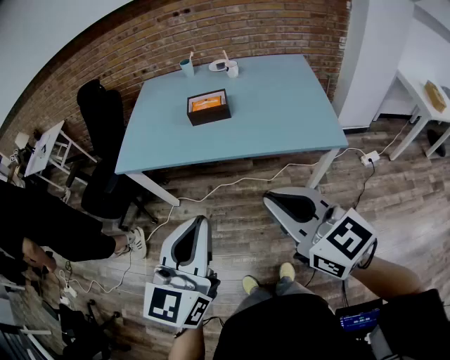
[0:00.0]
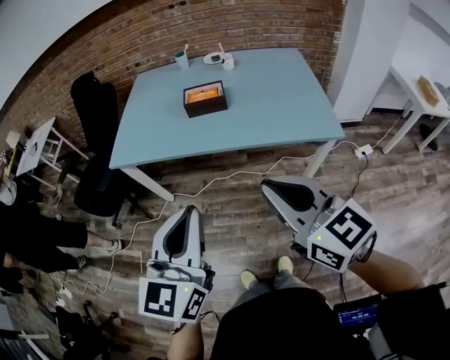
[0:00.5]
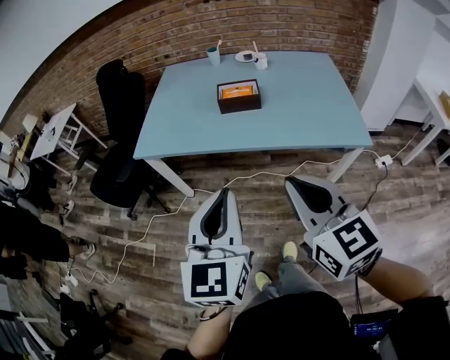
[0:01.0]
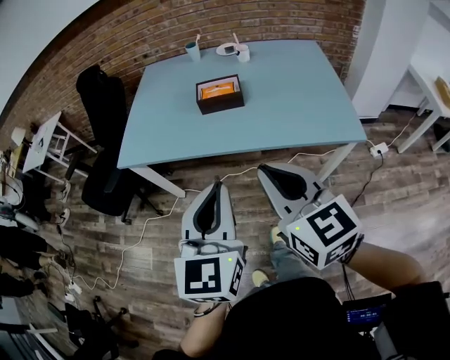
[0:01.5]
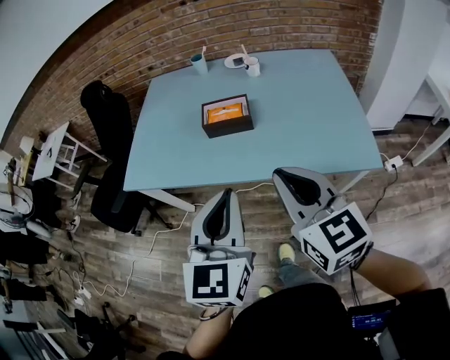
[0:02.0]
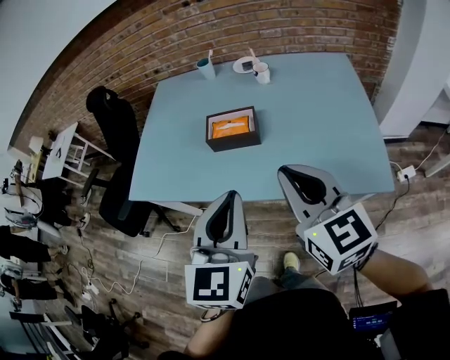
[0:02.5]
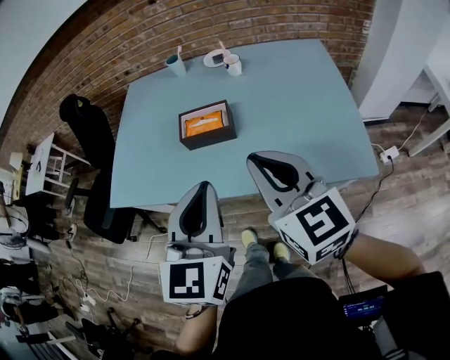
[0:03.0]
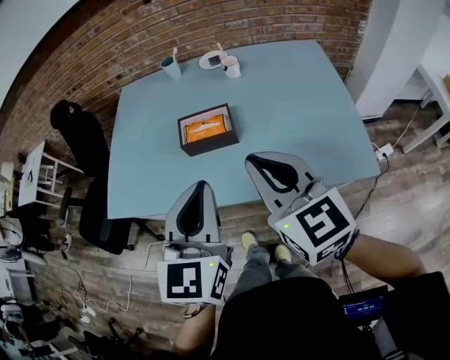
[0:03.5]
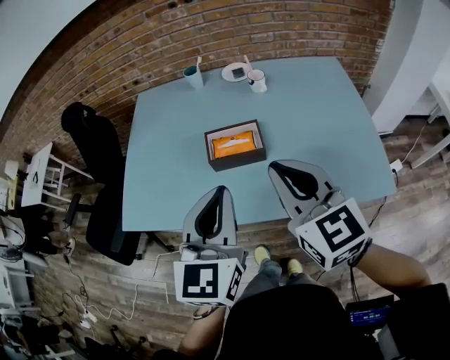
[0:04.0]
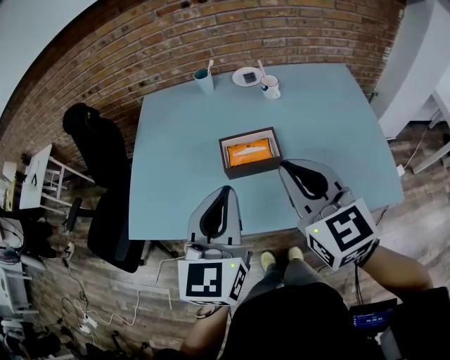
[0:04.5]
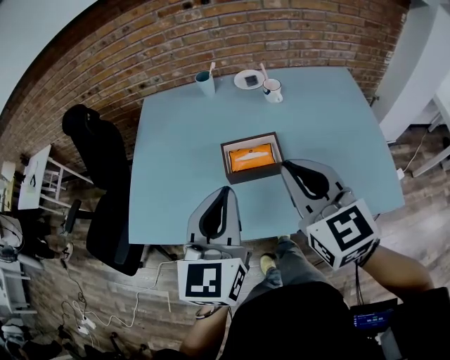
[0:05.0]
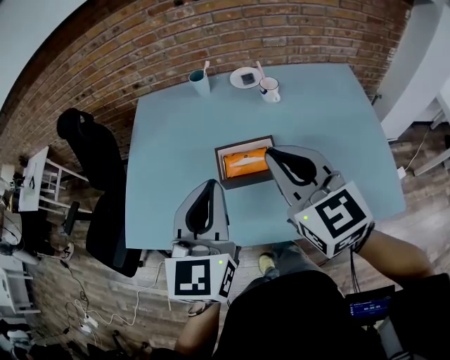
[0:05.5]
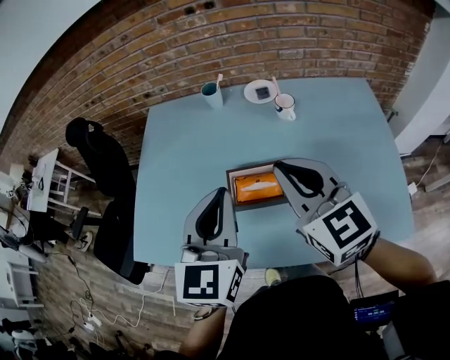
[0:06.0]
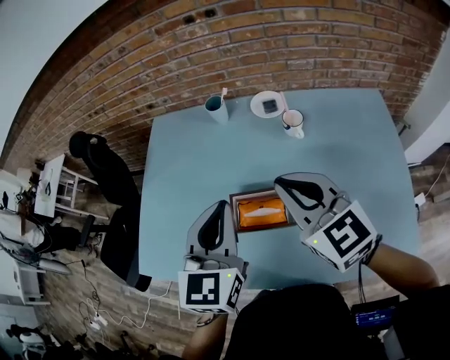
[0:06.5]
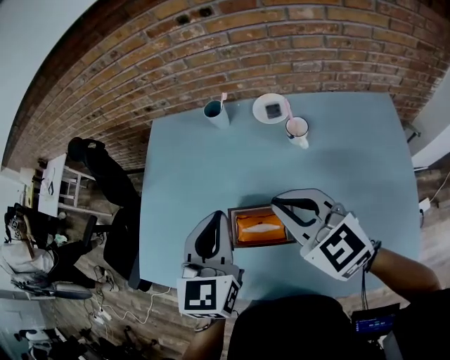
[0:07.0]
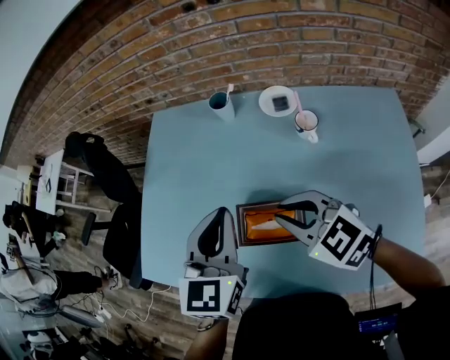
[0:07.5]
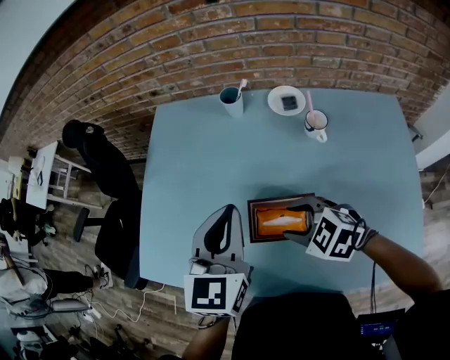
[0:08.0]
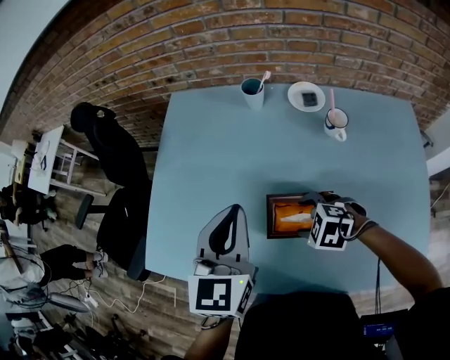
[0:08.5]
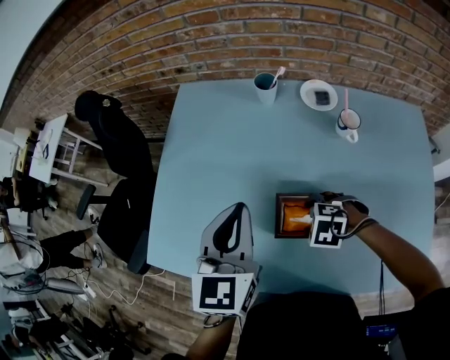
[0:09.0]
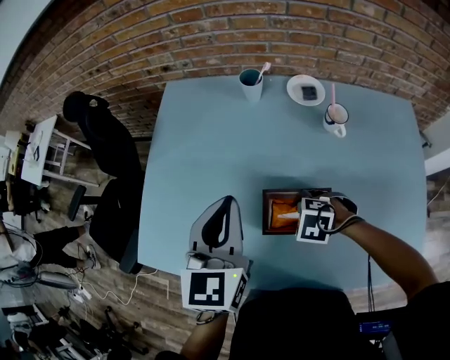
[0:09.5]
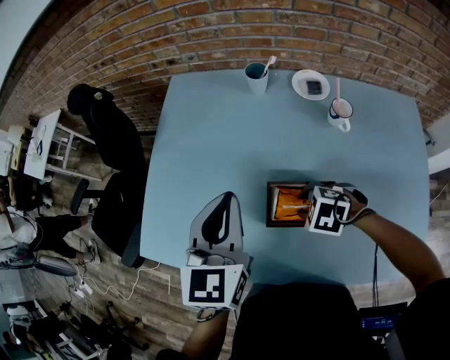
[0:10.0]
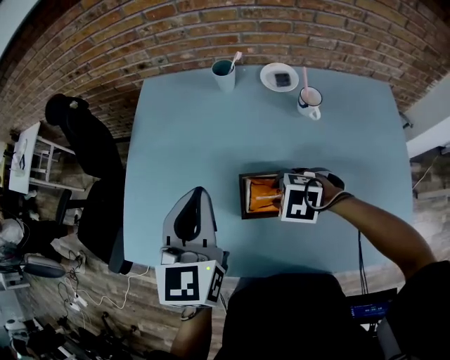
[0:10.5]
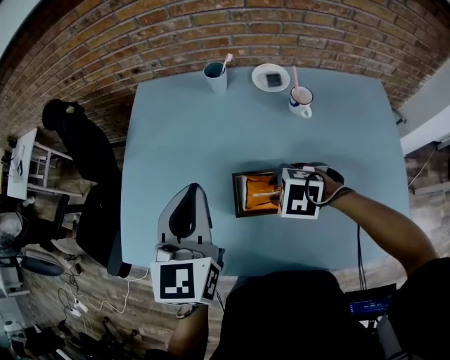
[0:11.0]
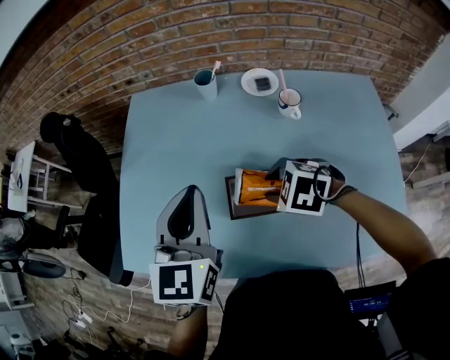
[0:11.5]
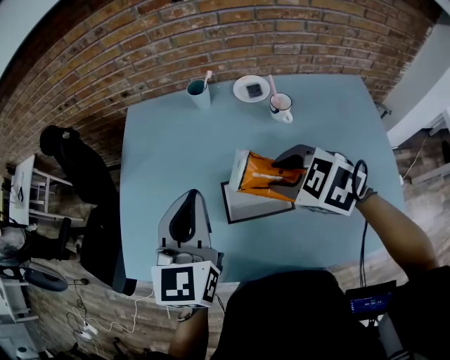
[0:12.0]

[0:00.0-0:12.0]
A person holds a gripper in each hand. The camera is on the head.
0:00.0 to 0:02.0: The two grippers go about 20 cm forward.
0:02.0 to 0:04.0: The two grippers go about 20 cm forward.
0:04.0 to 0:06.0: Both grippers travel together forward, some 15 cm.
0:06.0 to 0:08.0: The left gripper shifts roughly 15 cm forward and downward, while the right gripper heads downward, covering about 20 cm, tips its fingers downward by roughly 40 degrees, and opens its fingers.
0:08.0 to 0:10.0: The left gripper ends up roughly 5 cm from where it was. Meanwhile the right gripper is displaced downward by about 10 cm, and turns by some 20 degrees.
0:10.0 to 0:12.0: The left gripper moves approximately 5 cm, while the right gripper goes roughly 15 cm upward, and rotates some 30 degrees.

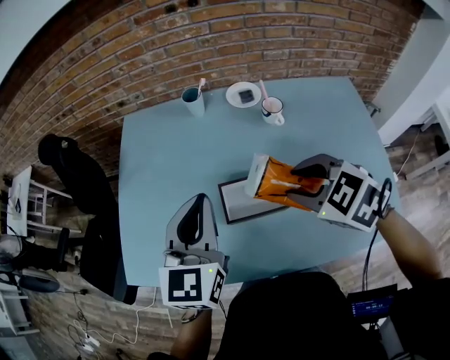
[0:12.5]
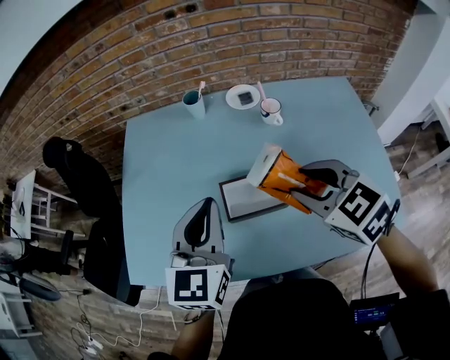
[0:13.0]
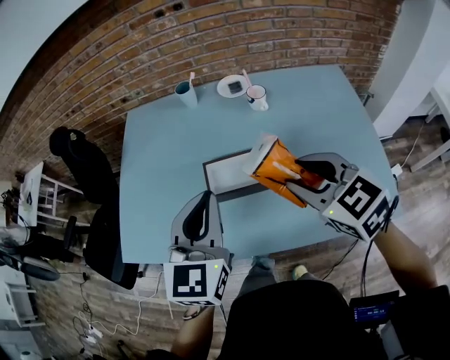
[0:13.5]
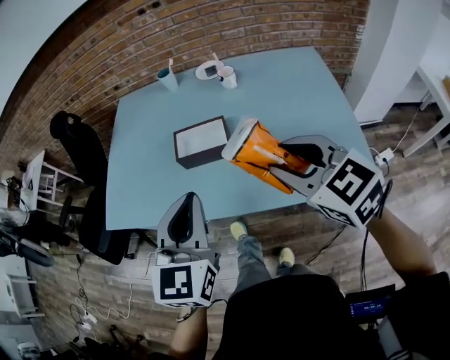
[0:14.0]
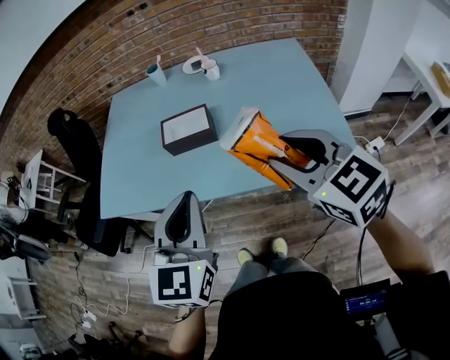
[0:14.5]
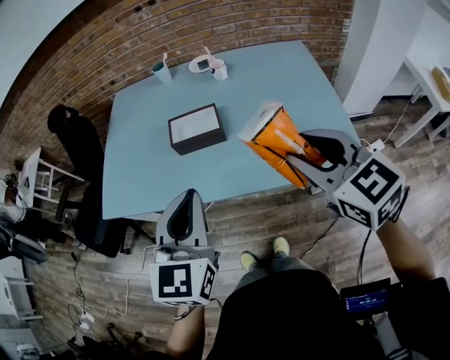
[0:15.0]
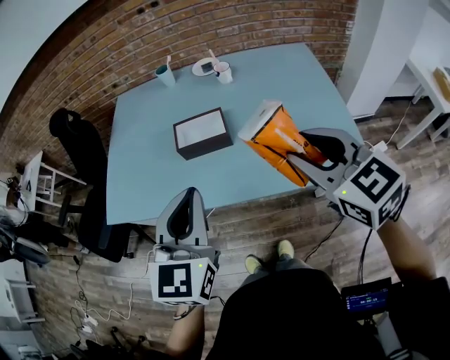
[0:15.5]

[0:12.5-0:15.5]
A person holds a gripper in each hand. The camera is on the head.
0:12.5 to 0:14.0: The grippers both shift backward by roughly 25 cm. The right gripper changes its angle by about 30 degrees.
0:14.0 to 0:15.5: The right gripper is displaced backward by approximately 5 cm.

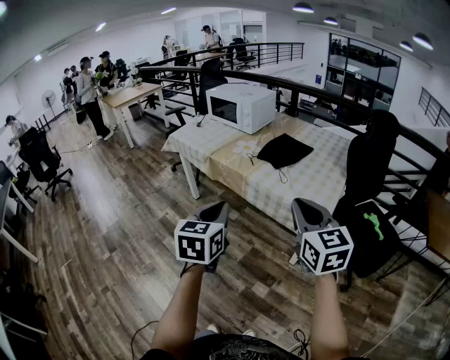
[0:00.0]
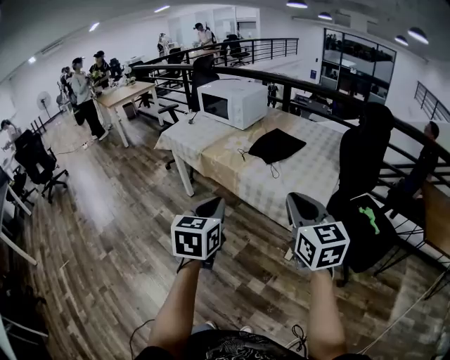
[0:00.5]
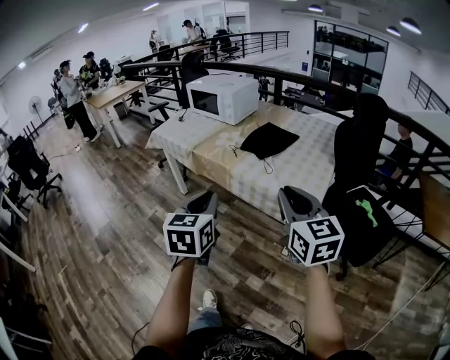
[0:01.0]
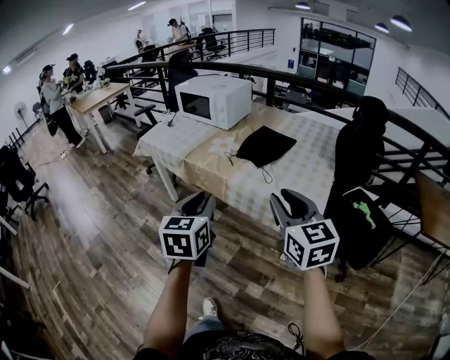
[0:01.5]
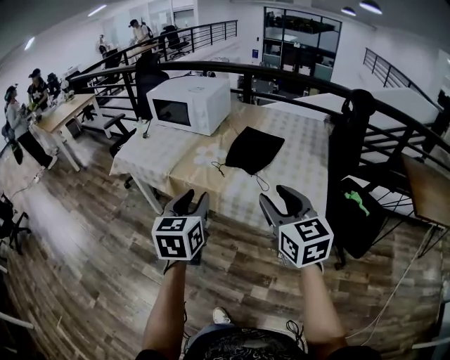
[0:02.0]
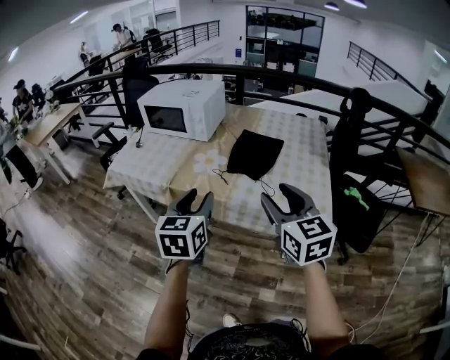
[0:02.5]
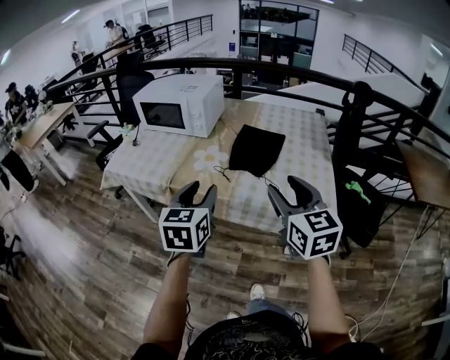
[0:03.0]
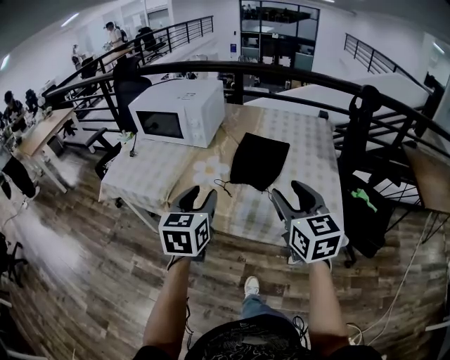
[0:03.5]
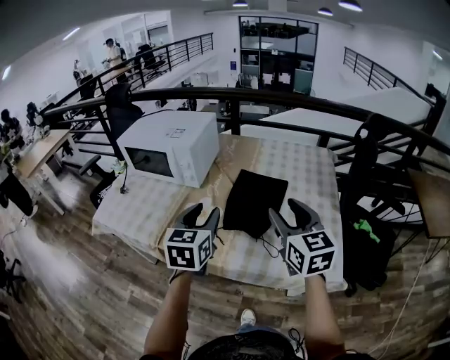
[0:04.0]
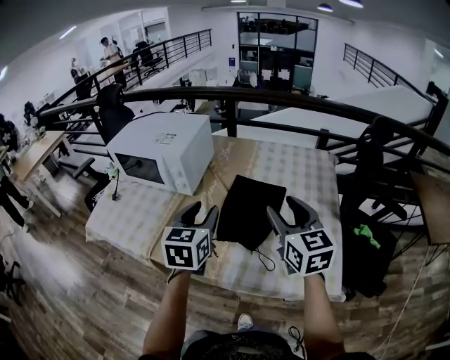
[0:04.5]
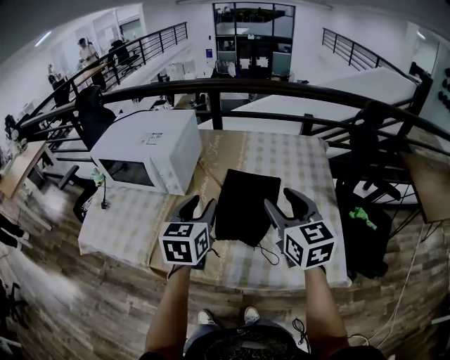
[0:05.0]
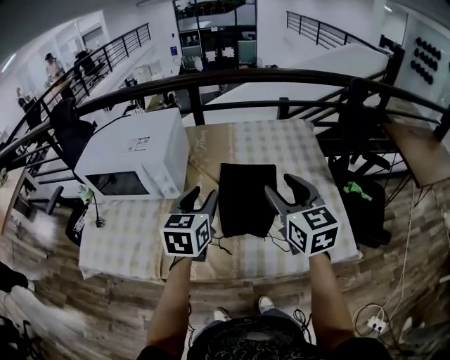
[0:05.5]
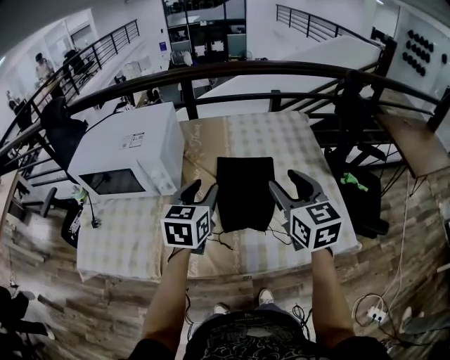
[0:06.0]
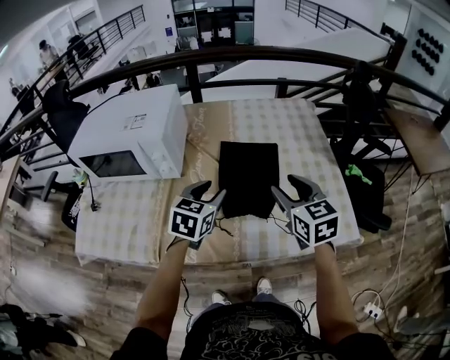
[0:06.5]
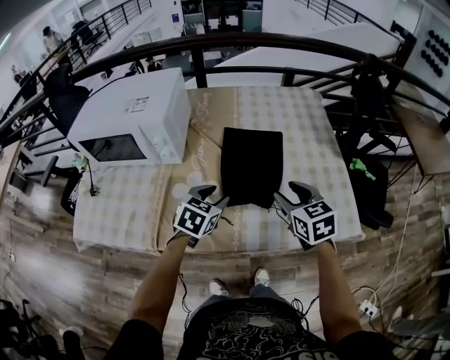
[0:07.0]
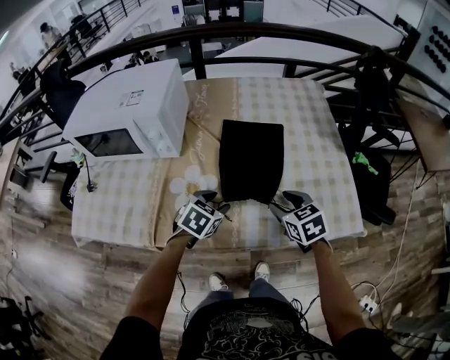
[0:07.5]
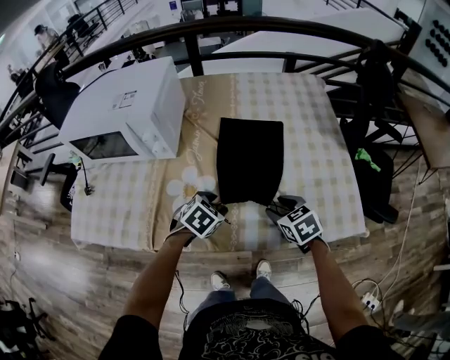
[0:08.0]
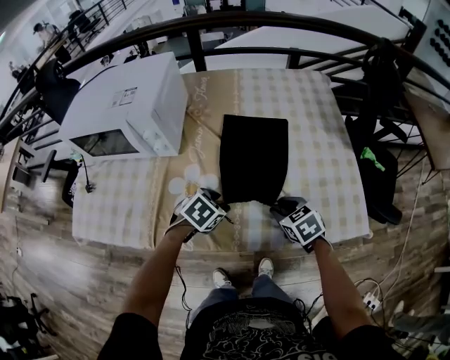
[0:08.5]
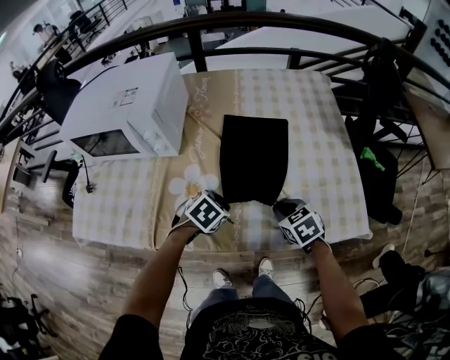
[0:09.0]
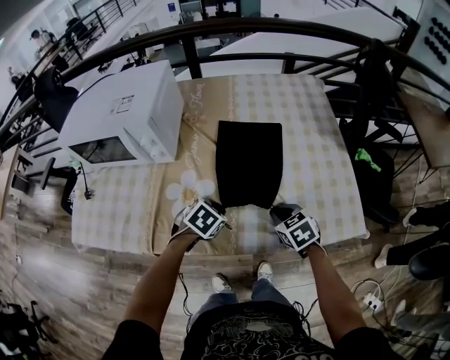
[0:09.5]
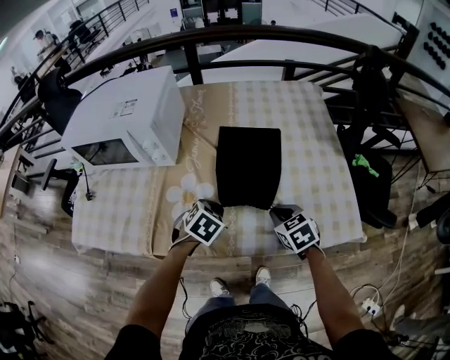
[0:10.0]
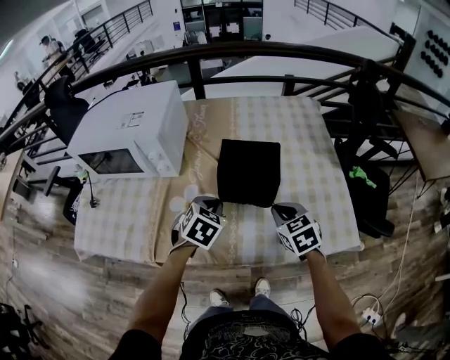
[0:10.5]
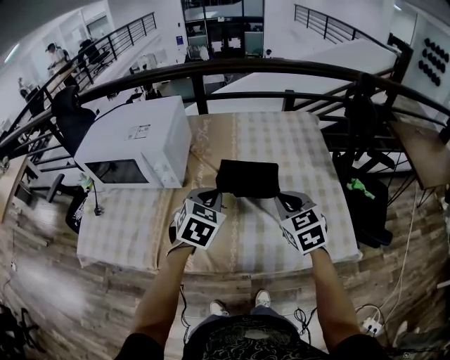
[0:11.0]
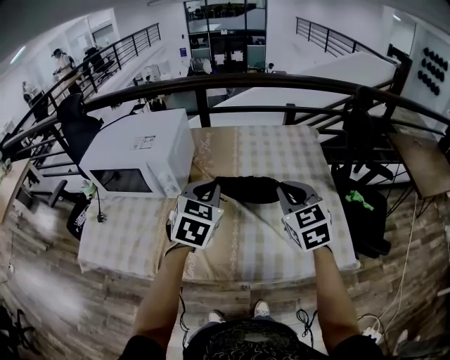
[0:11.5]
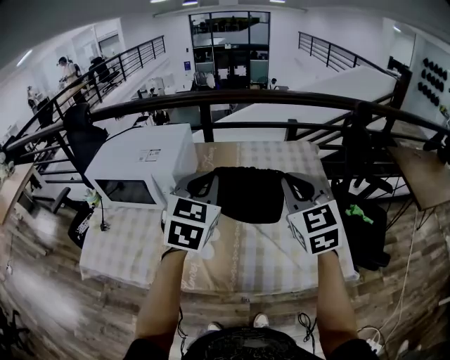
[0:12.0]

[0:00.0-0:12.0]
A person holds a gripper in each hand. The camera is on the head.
0:00.0 to 0:02.0: The two grippers go approximately 20 cm forward. The right gripper opens up. Meanwhile the left gripper opens up.
0:02.0 to 0:04.0: The two grippers go roughly 25 cm forward.
0:04.0 to 0:06.0: The left gripper moves forward, about 15 cm, and turns by roughly 20 degrees; the right gripper shifts some 10 cm forward.
0:06.0 to 0:08.0: The grippers both shift downward by approximately 25 cm. The right gripper tilts its fingers about 40 degrees downward. The left gripper points its fingers roughly 40 degrees further downward.
0:08.0 to 0:10.0: The left gripper closes up. The right gripper closes up.
0:10.0 to 0:12.0: Both grippers move upward, roughly 35 cm. The left gripper angles its fingers upward, by some 40 degrees; the right gripper points its fingers roughly 40 degrees further upward.
